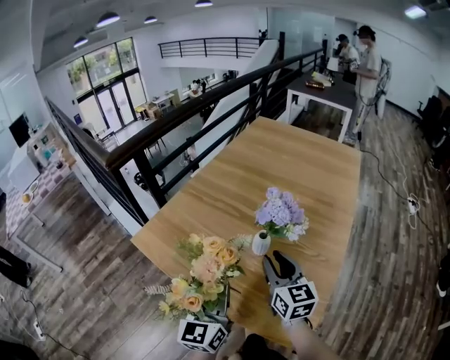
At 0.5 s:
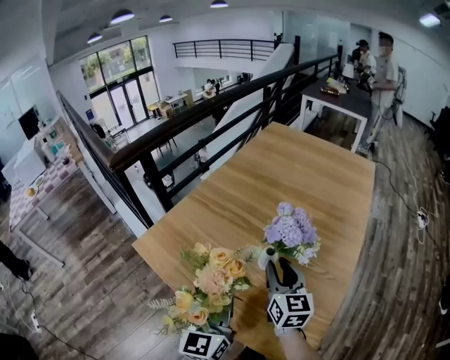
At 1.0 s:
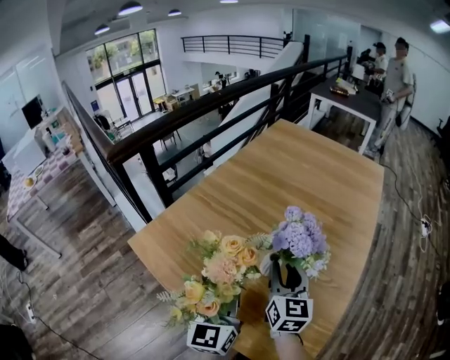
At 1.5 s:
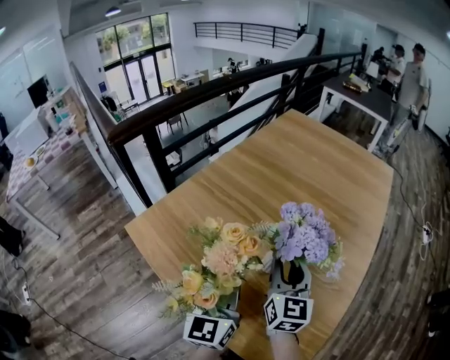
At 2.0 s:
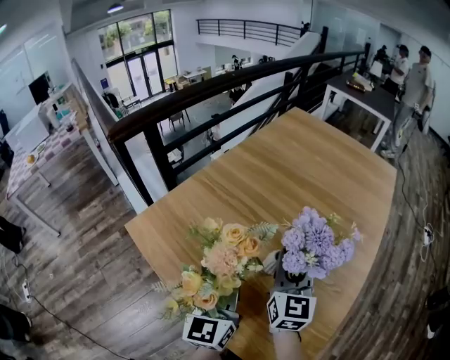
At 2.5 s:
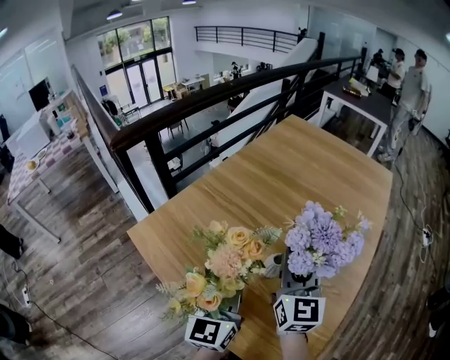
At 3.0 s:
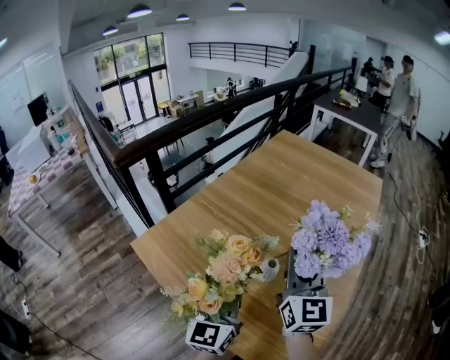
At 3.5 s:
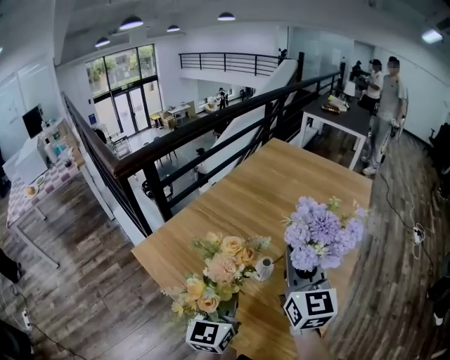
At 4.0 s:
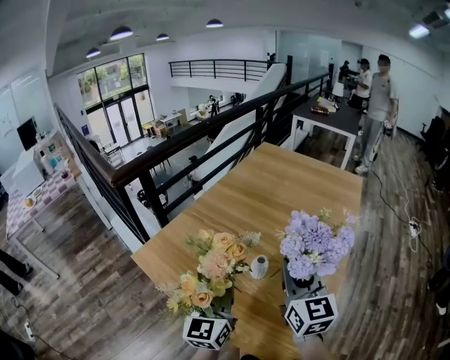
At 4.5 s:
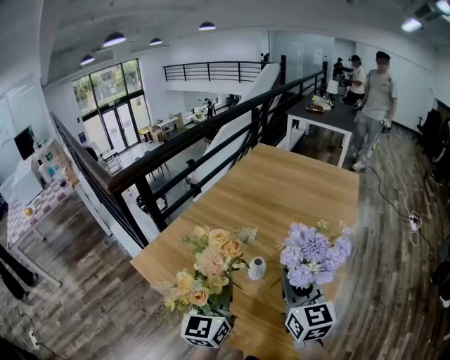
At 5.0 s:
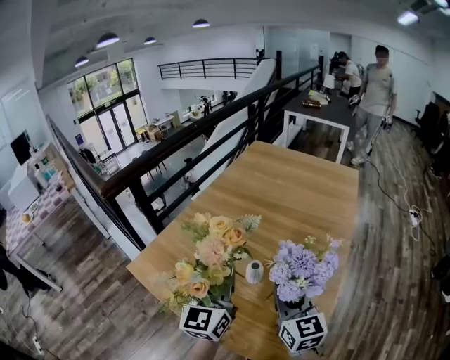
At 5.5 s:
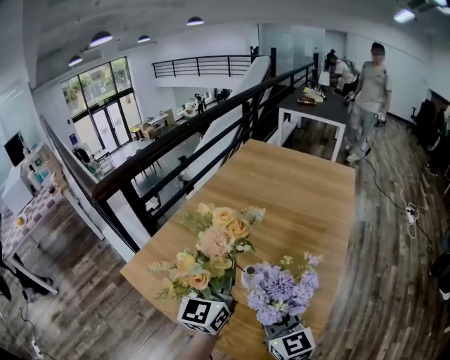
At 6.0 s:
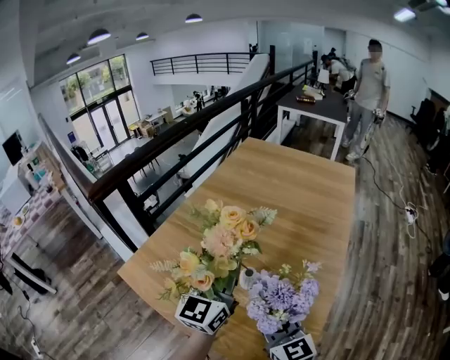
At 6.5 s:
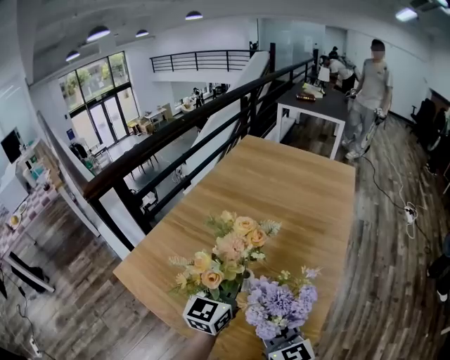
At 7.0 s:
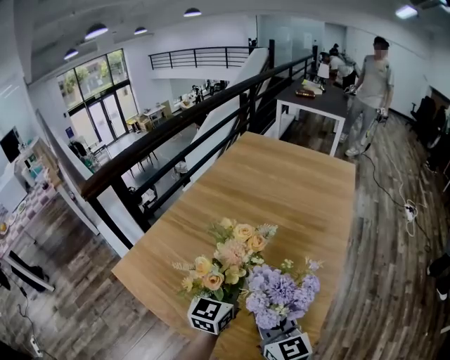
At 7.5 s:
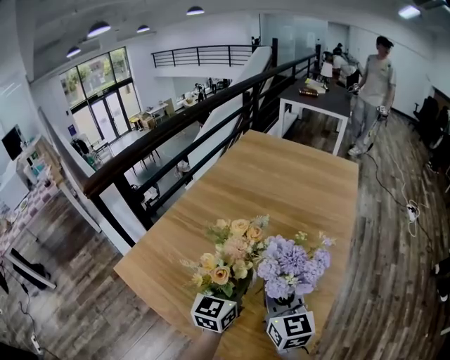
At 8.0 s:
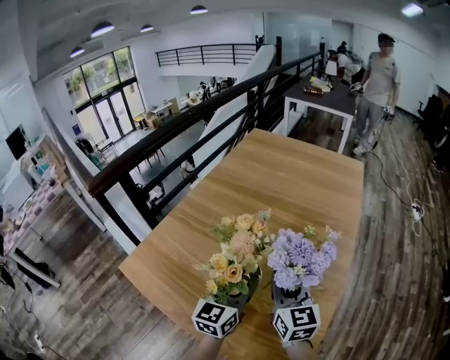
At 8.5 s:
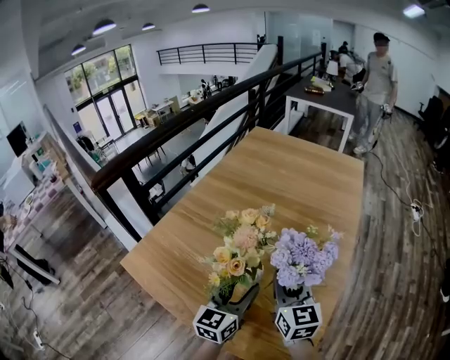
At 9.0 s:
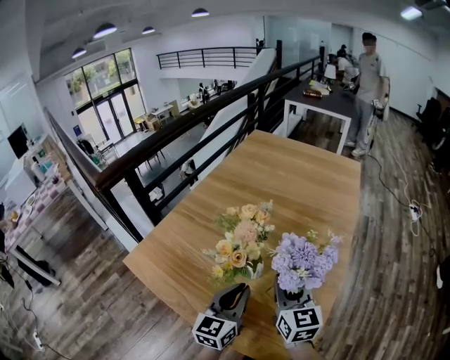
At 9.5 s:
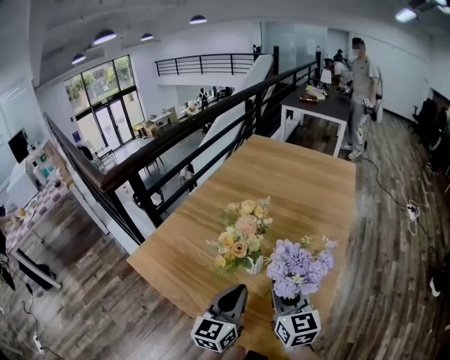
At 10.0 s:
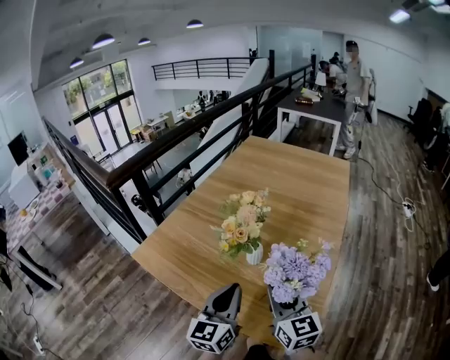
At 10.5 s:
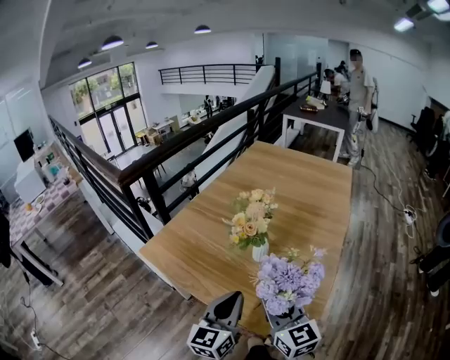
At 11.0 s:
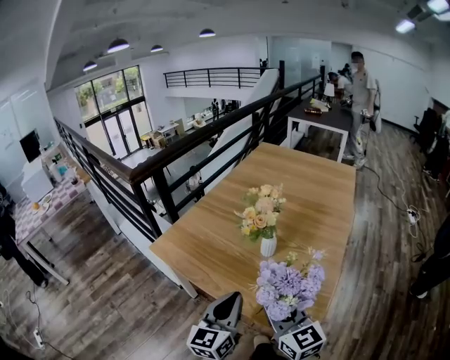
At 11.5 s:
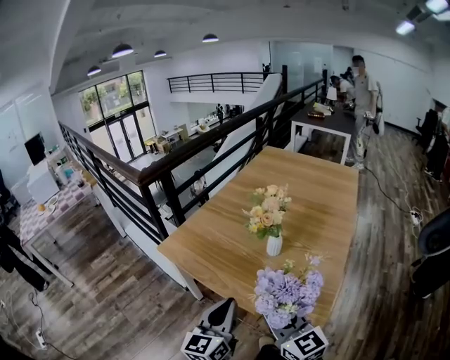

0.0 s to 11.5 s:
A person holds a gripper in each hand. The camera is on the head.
0.0 to 2.0 s: The two grippers go some 10 cm forward.
2.0 to 4.0 s: The left gripper shifts some 5 cm upward. The right gripper travels upward and backward by about 15 cm.
4.0 to 6.0 s: The right gripper shifts roughly 10 cm downward; the left gripper heads forward, to the right and upward, covering approximately 15 cm.
6.0 to 7.5 s: The left gripper moves downward, roughly 10 cm, and opens; the right gripper goes some 5 cm forward.
7.5 to 9.5 s: The right gripper goes some 5 cm backward; the left gripper goes approximately 15 cm backward, and closes.
9.5 to 11.5 s: The grippers both shift backward and to the left by about 20 cm. The right gripper changes its angle by about 20 degrees.

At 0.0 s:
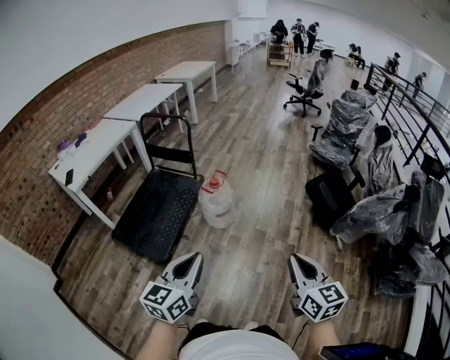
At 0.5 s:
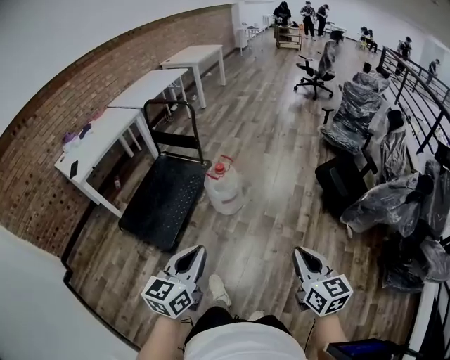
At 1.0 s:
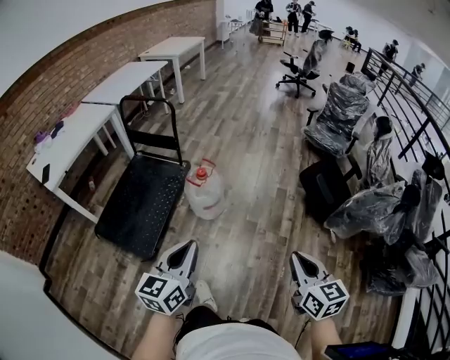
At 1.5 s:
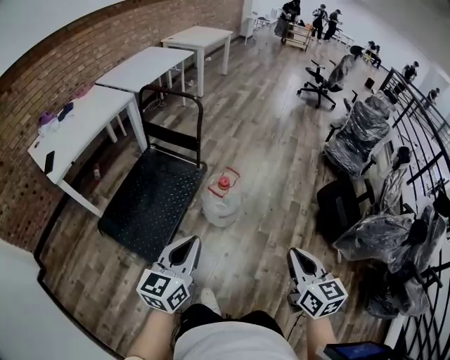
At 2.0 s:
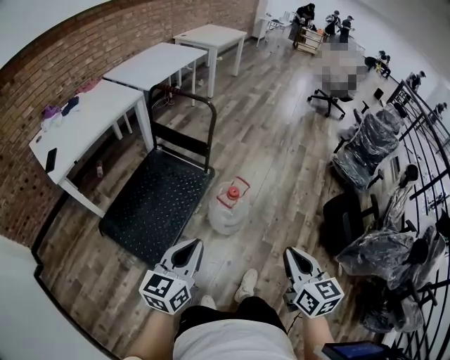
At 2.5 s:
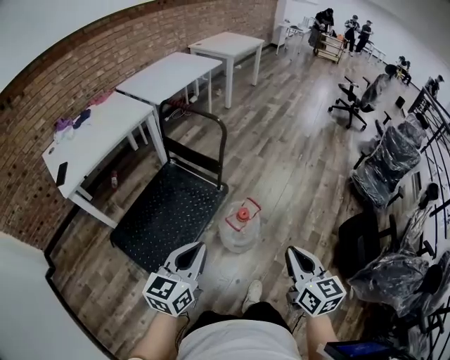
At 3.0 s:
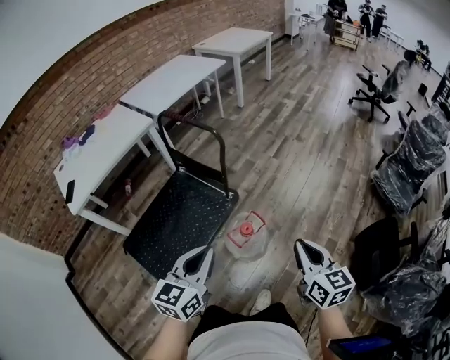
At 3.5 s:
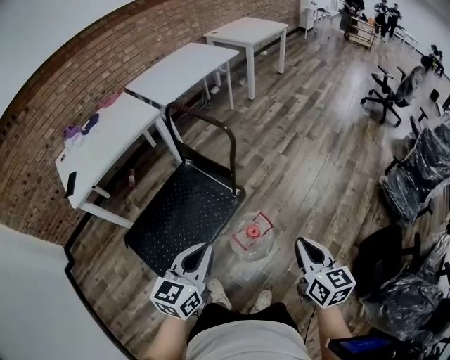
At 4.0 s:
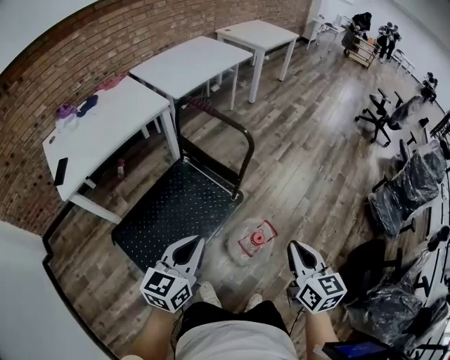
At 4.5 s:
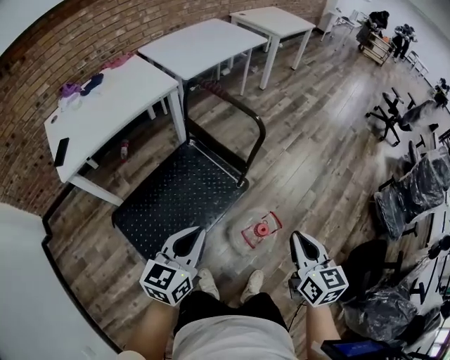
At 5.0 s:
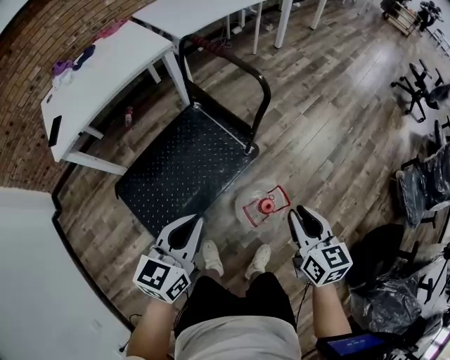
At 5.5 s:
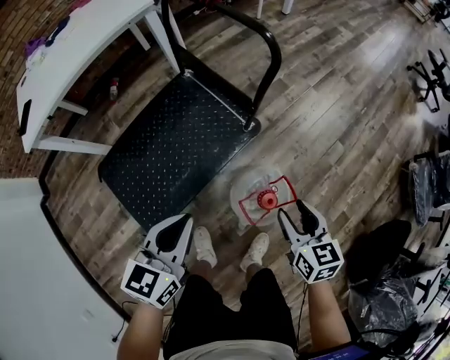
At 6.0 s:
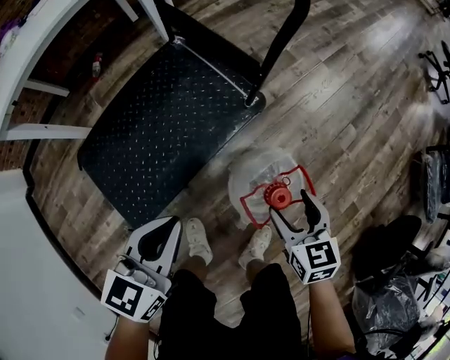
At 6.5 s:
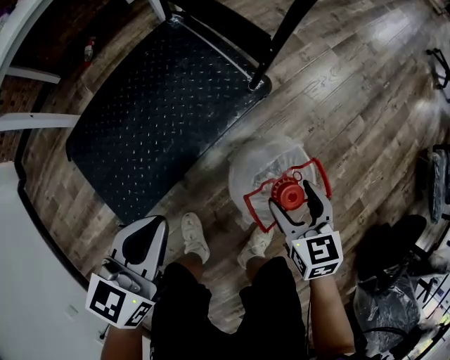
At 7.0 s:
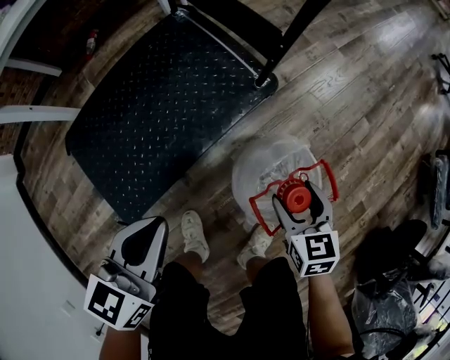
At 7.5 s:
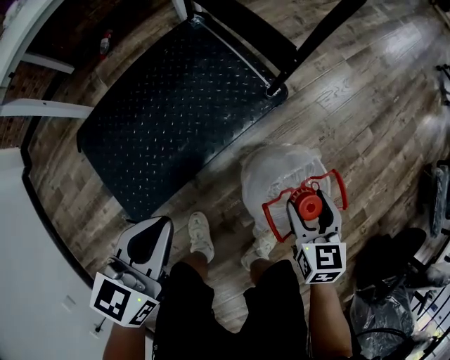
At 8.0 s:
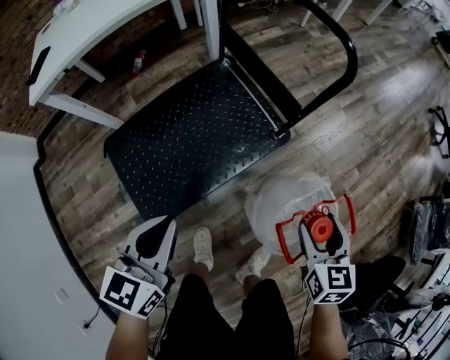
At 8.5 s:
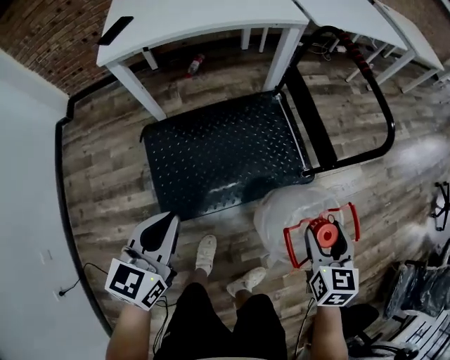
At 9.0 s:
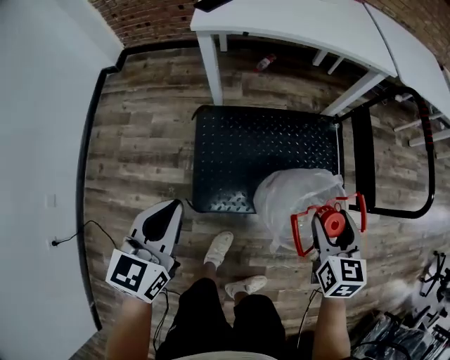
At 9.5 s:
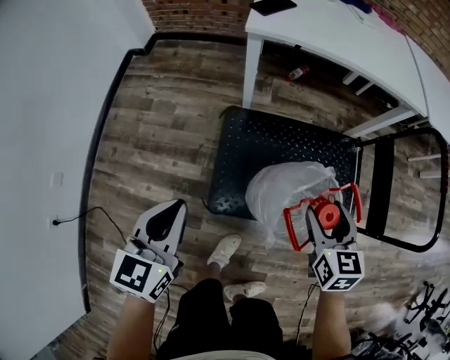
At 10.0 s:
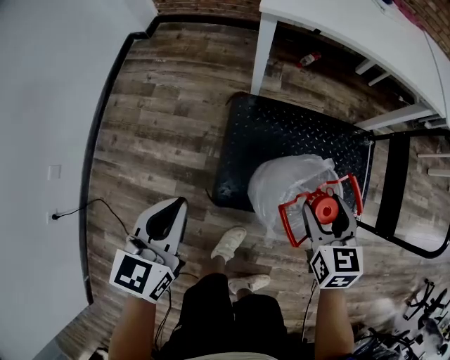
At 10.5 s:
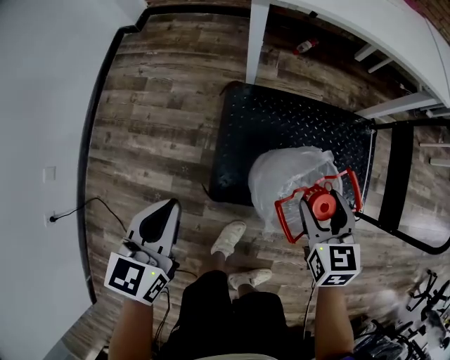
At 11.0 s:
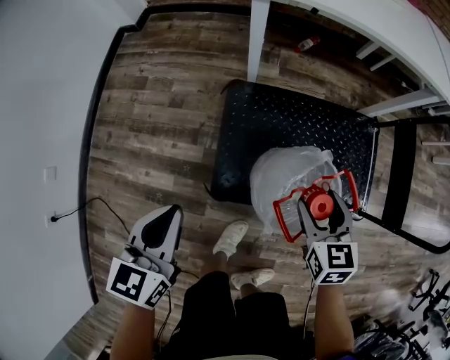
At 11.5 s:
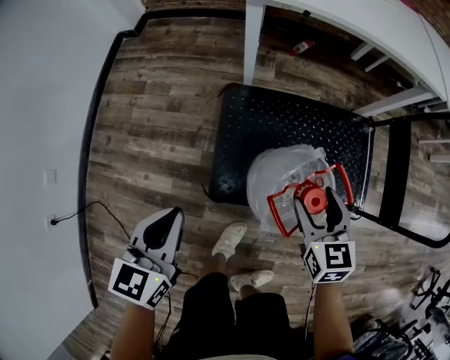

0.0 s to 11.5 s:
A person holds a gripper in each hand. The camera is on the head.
0.0 to 2.0 s: Both grippers move forward and to the left, some 35 cm.
2.0 to 4.0 s: The grippers both shift forward by roughly 30 cm.
4.0 to 6.0 s: The grippers both shift downward by some 35 cm. The right gripper swivels some 30 degrees, and opens up.
6.0 to 7.5 s: The left gripper heads to the left, covering about 5 cm; the right gripper shifts some 5 cm downward.
7.5 to 9.5 s: The pair of grippers is taken about 40 cm. The right gripper changes its angle by about 40 degrees; the left gripper rotates some 50 degrees.
9.5 to 11.5 s: Both grippers travel together downward, some 10 cm.

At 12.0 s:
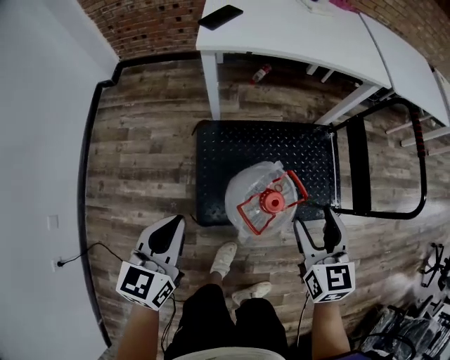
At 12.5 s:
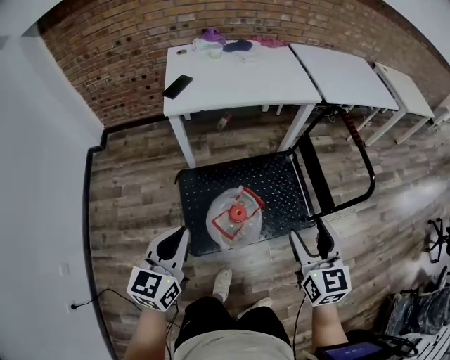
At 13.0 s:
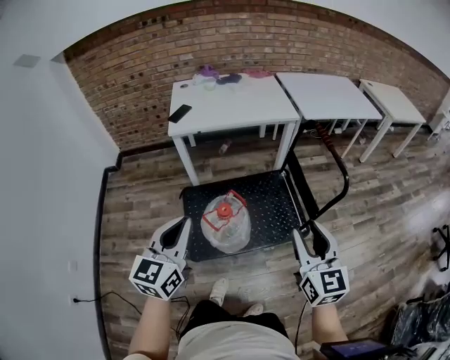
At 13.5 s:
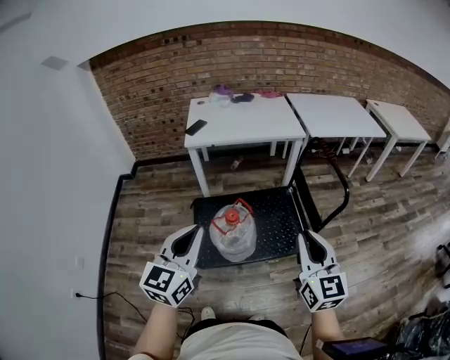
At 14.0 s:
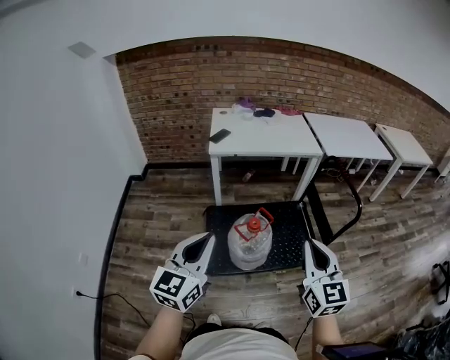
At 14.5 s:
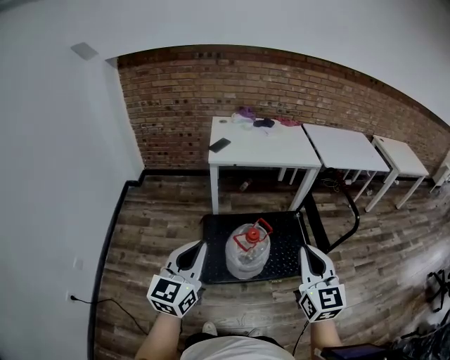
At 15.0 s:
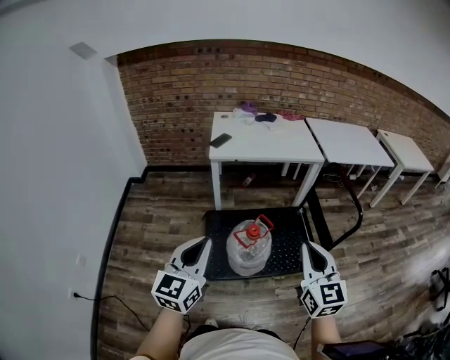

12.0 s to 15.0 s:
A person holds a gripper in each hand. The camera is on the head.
12.0 to 13.5 s: The right gripper is displaced upward, backward and to the right by approximately 40 cm, rotates some 30 degrees, and closes up, while the left gripper travels upward, to the right and backward by about 40 cm, and swivels roughly 20 degrees.
13.5 to 15.0 s: The grippers both shift to the left by roughly 10 cm.

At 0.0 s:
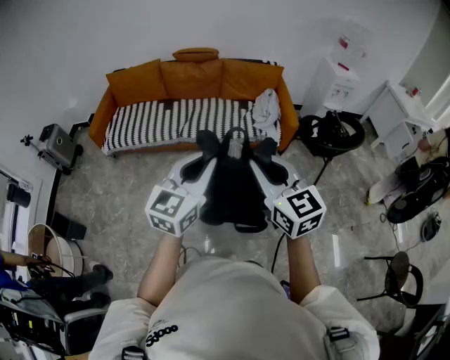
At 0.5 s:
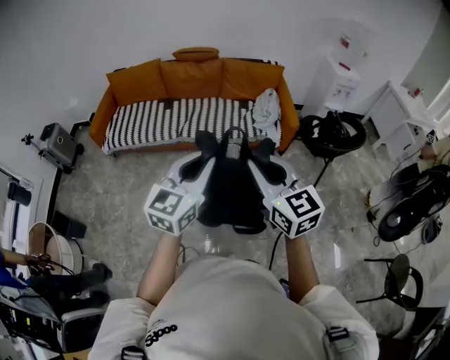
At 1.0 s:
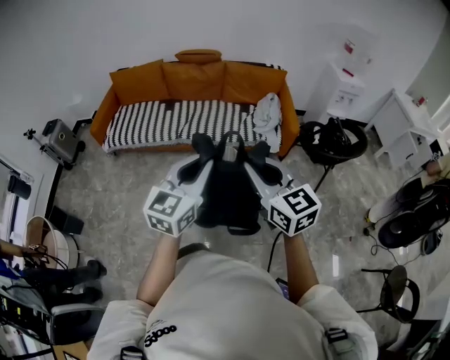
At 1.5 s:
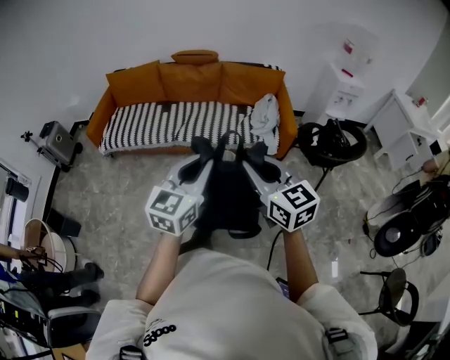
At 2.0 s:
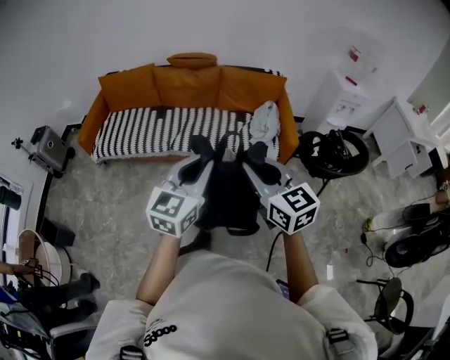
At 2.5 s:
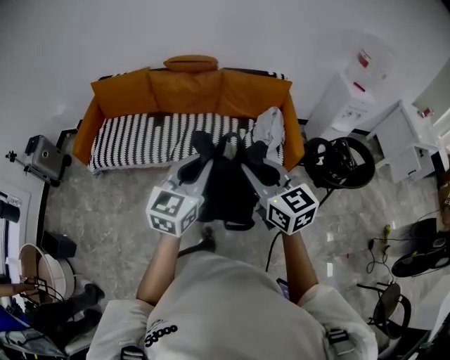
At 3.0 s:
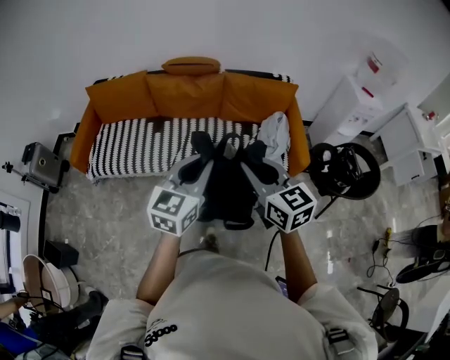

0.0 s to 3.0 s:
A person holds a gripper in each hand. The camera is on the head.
0.0 to 1.5 s: The right gripper heads to the right and forward, covering approximately 10 cm. The left gripper goes roughly 5 cm to the right.
1.5 to 3.0 s: Both grippers travel together forward, some 35 cm.
